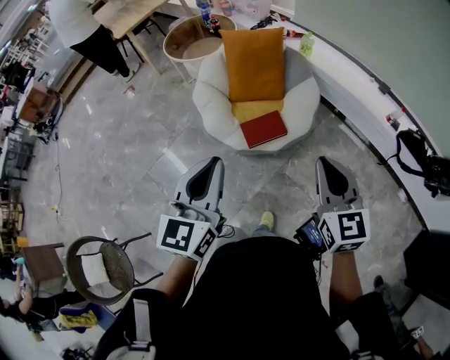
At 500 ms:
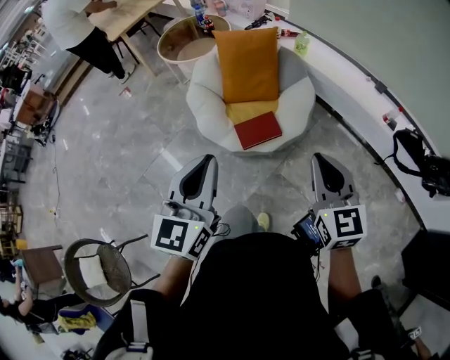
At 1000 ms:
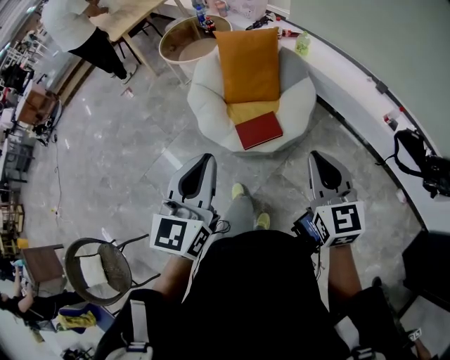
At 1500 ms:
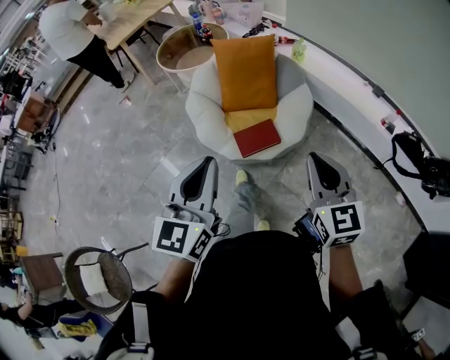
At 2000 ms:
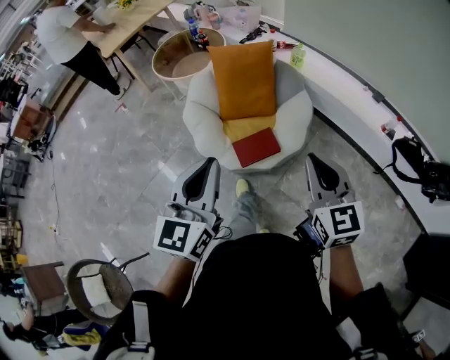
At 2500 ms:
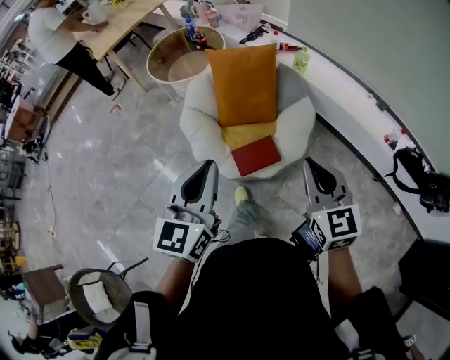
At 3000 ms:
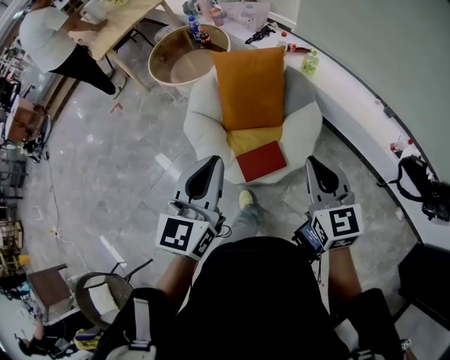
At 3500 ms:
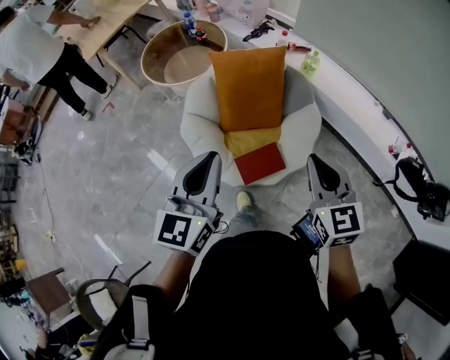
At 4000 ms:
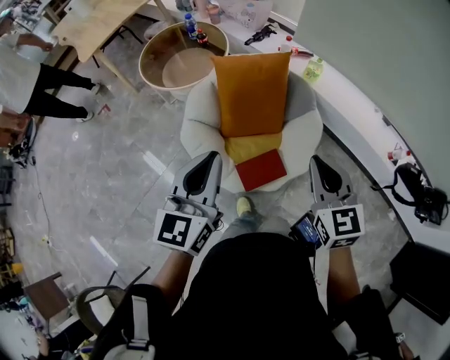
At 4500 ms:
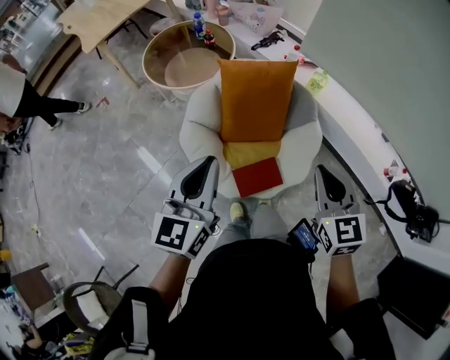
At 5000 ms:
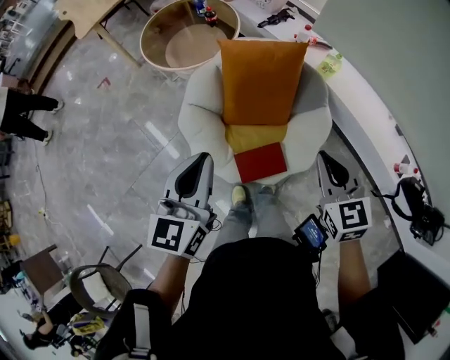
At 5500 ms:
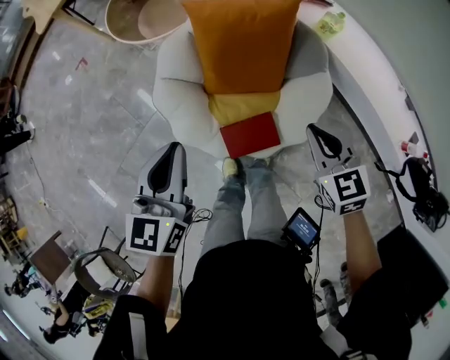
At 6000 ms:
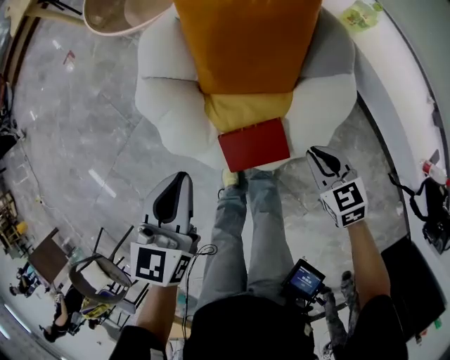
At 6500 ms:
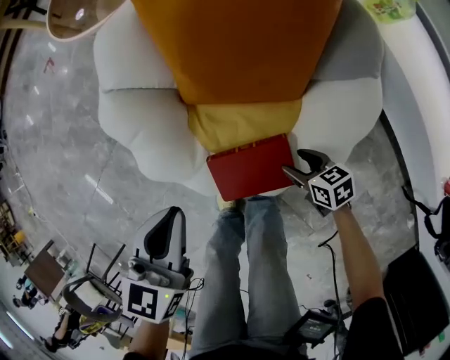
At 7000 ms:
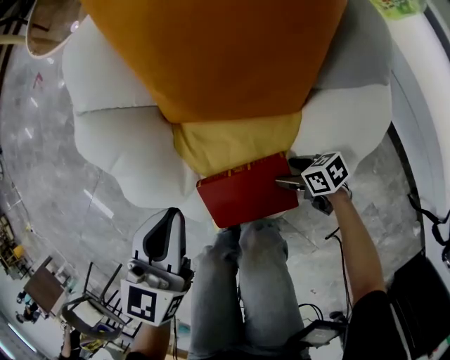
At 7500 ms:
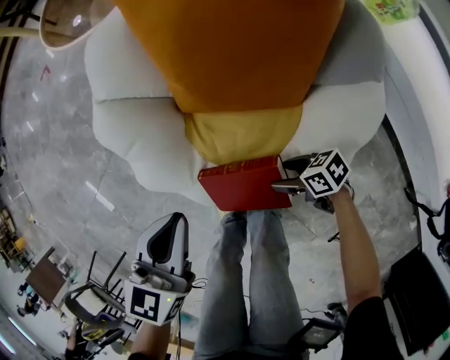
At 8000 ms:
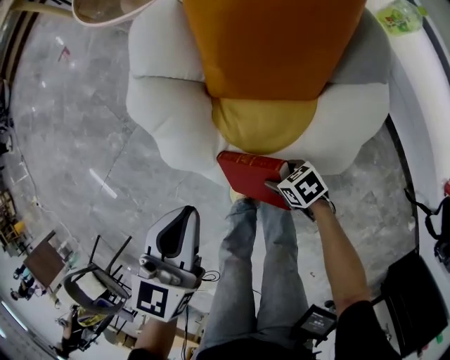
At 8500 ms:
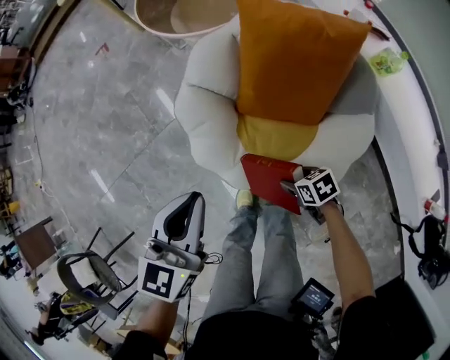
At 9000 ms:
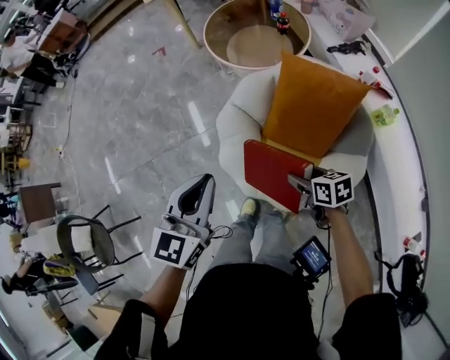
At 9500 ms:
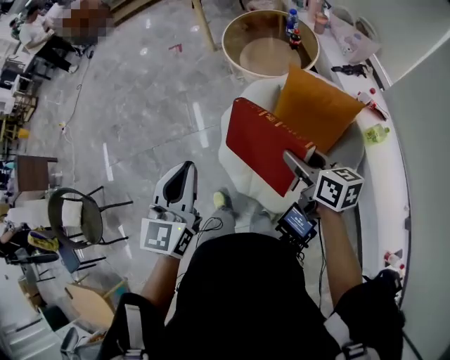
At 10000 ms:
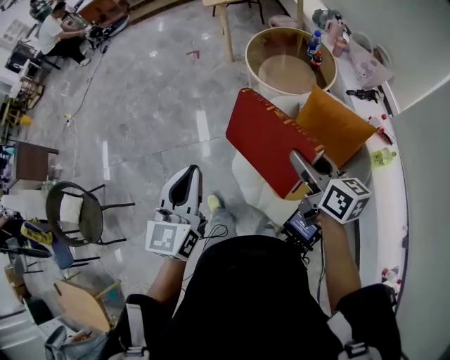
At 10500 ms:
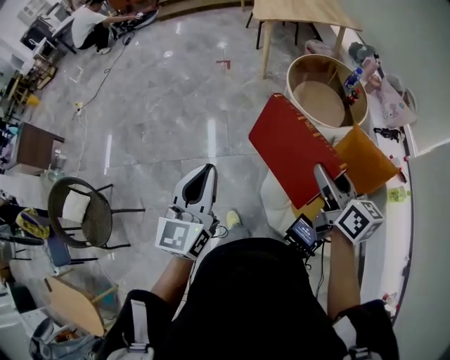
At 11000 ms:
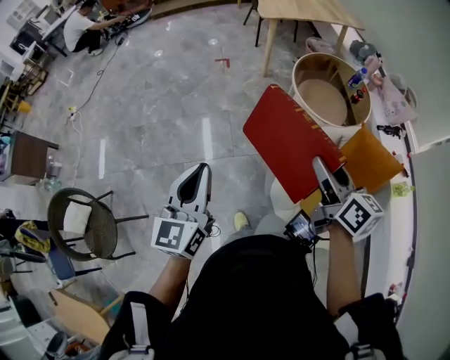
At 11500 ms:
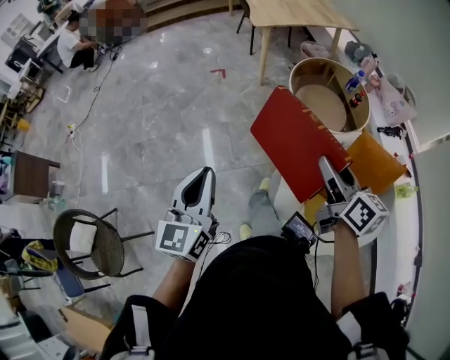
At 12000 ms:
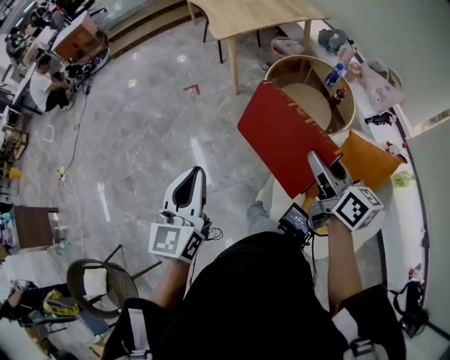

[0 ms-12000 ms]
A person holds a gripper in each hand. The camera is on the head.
0 ms to 2000 ms: Both grippers travel together forward, roughly 10 cm.
2000 ms to 4000 ms: Both grippers travel together forward, approximately 25 cm.
4000 ms to 6000 ms: Both grippers move downward, roughly 35 cm. The right gripper swivels about 40 degrees. Meanwhile the left gripper rotates roughly 30 degrees.
6000 ms to 8000 ms: The left gripper travels downward by approximately 10 cm; the right gripper is displaced downward by some 25 cm, swivels about 40 degrees, and opens up.
8000 ms to 10000 ms: The left gripper heads upward and to the left, covering some 40 cm, and swivels roughly 40 degrees. Meanwhile the right gripper is displaced upward by some 60 cm, and points its fingers about 40 degrees further upward.
10000 ms to 12000 ms: Both grippers travel together forward and to the left, about 35 cm.

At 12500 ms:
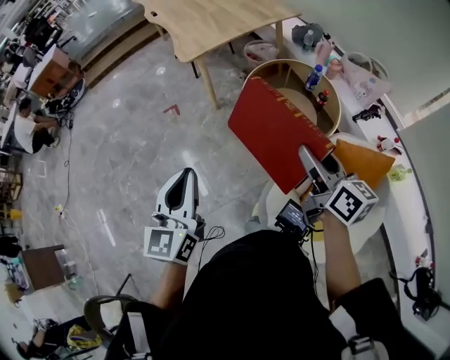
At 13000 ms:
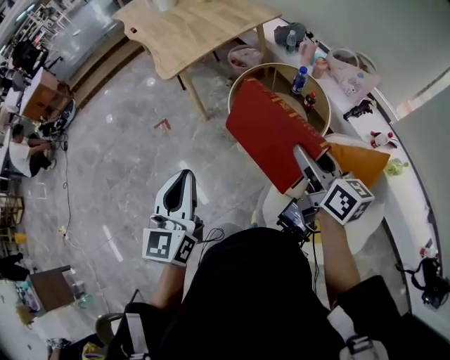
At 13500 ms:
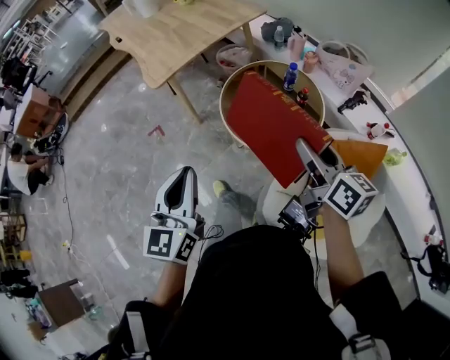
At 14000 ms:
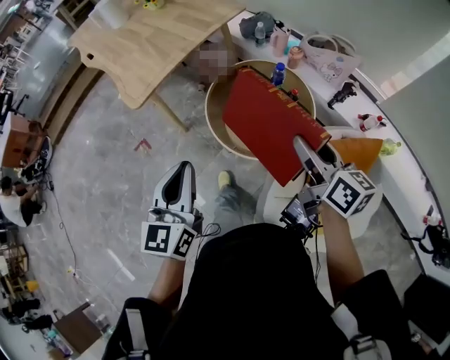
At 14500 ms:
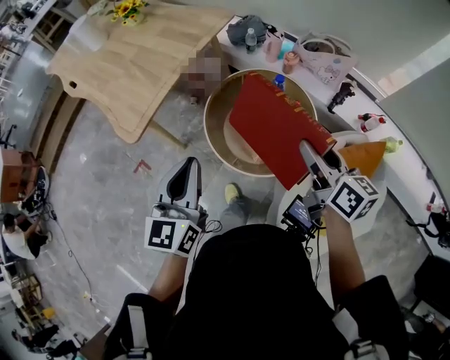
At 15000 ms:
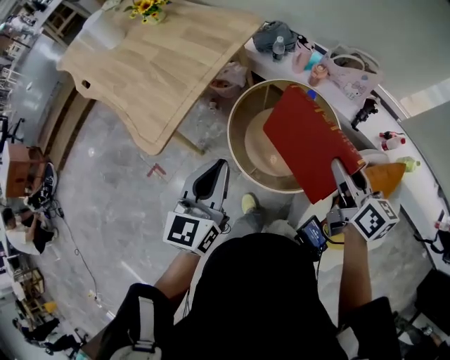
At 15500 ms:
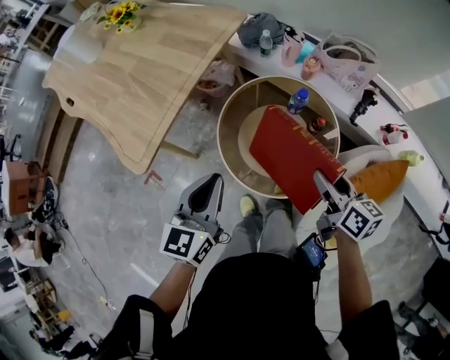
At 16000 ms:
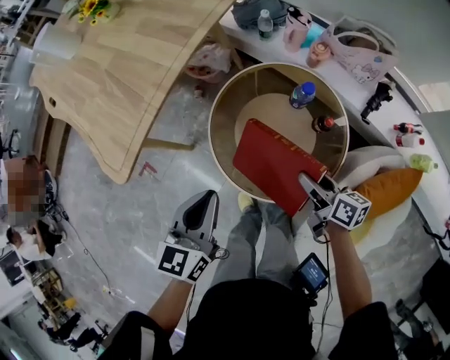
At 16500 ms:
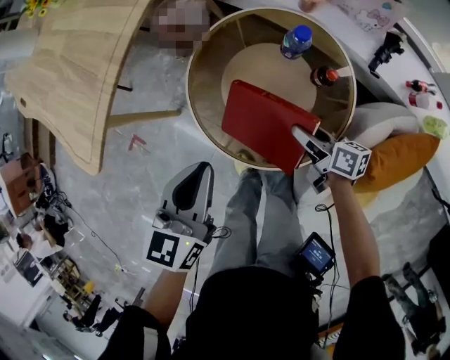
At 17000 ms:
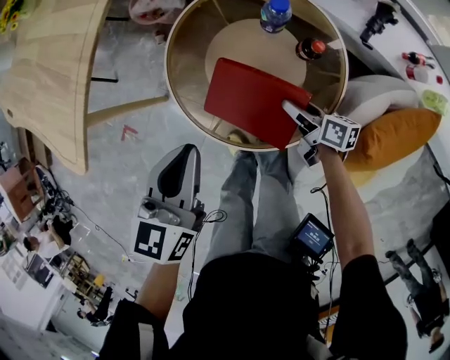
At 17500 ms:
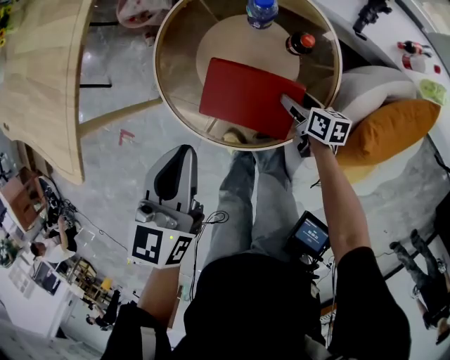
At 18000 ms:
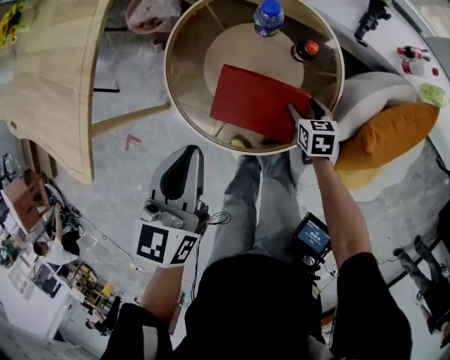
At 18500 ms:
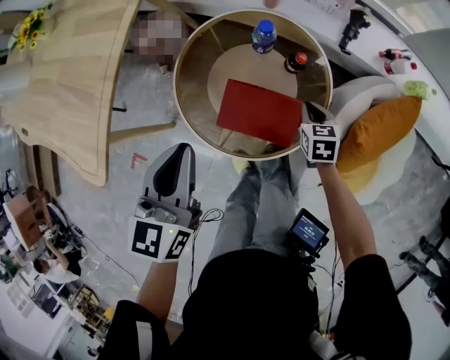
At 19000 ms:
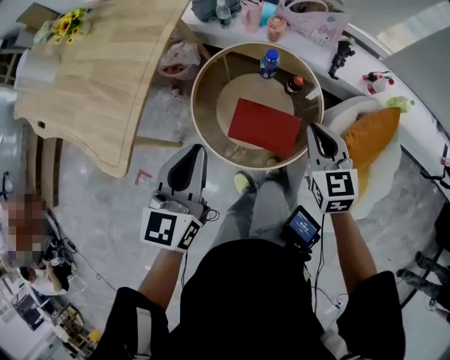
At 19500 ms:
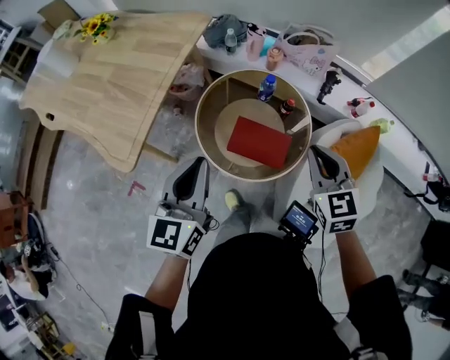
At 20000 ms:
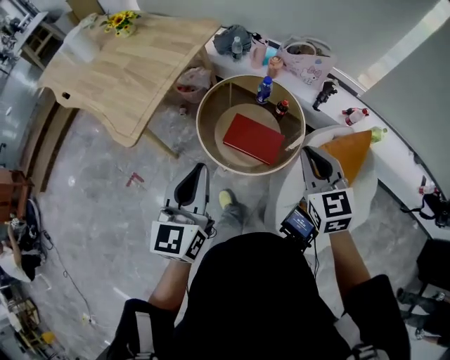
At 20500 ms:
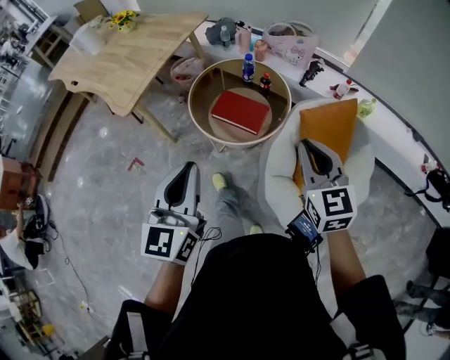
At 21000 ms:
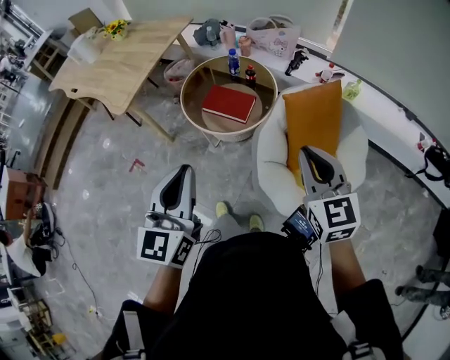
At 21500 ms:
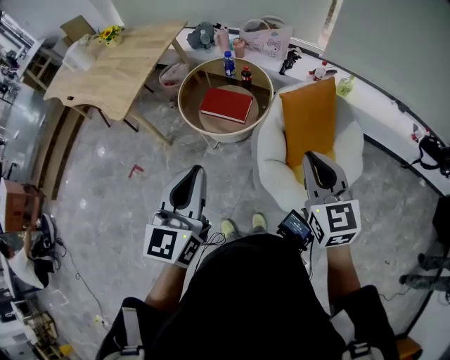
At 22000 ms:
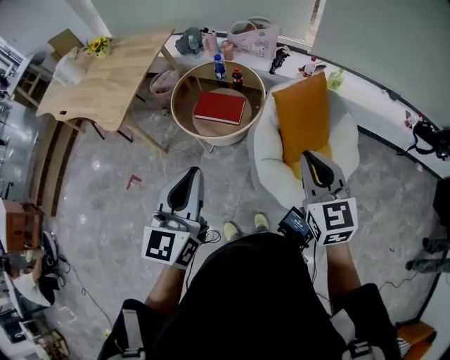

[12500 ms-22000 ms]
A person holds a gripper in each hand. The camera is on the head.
12500 ms to 14500 ms: The right gripper ends up some 25 cm from where it was, and swivels some 20 degrees. The left gripper changes place by roughly 35 cm, and rotates about 30 degrees.
14500 ms to 16500 ms: The left gripper shifts approximately 25 cm downward and forward, and swivels approximately 20 degrees; the right gripper shifts approximately 40 cm downward, and changes its angle by roughly 30 degrees.
16500 ms to 18000 ms: The right gripper travels downward and to the right by some 10 cm, and points its fingers some 30 degrees further downward.
18000 ms to 20000 ms: The left gripper moves upward and backward, roughly 30 cm, and swivels some 20 degrees. Meanwhile the right gripper goes some 50 cm upward, angles its fingers upward, by some 30 degrees, and closes up.
20000 ms to 22000 ms: The two grippers go some 30 cm backward and to the right.

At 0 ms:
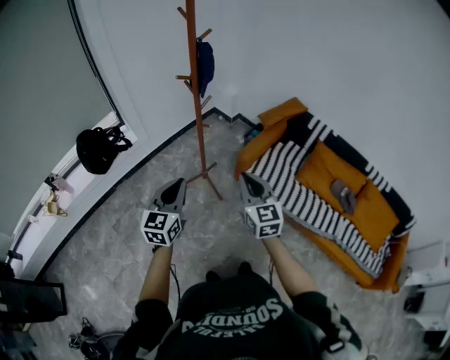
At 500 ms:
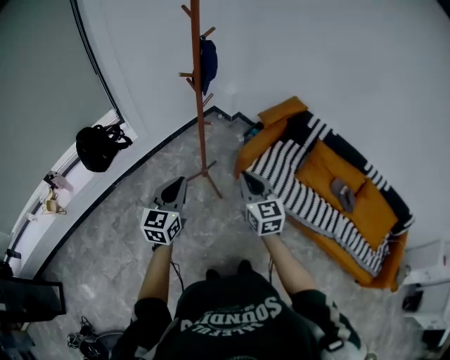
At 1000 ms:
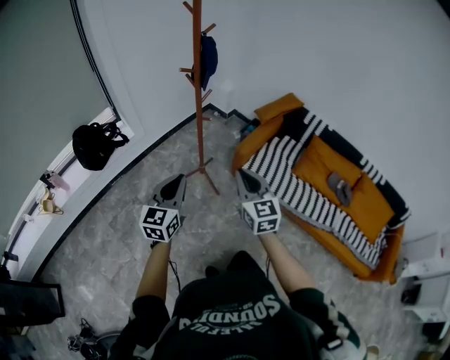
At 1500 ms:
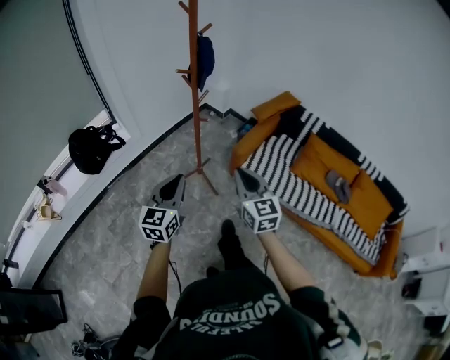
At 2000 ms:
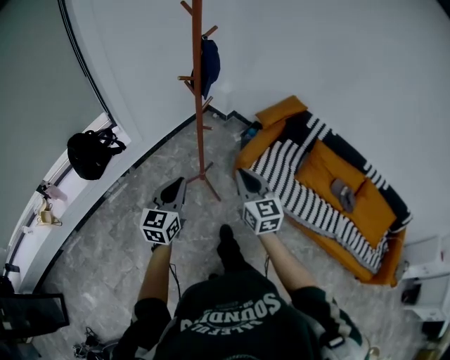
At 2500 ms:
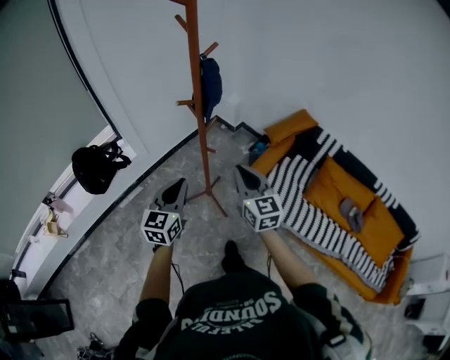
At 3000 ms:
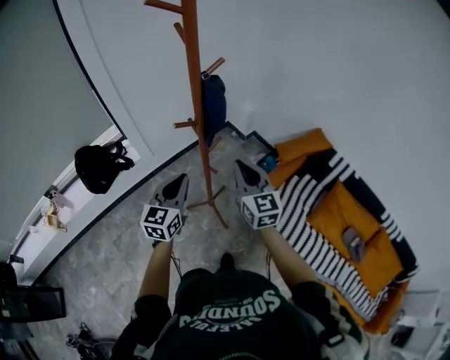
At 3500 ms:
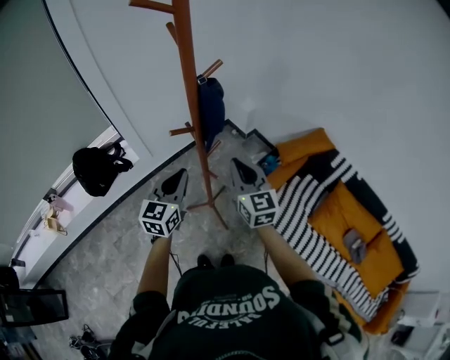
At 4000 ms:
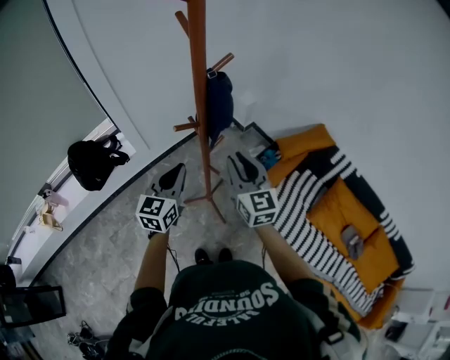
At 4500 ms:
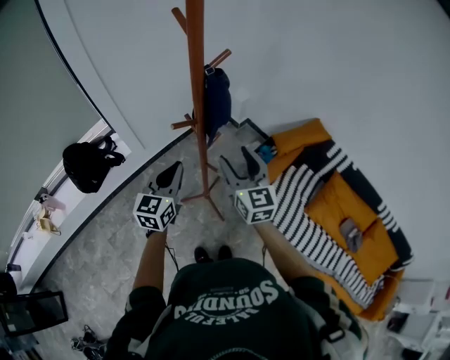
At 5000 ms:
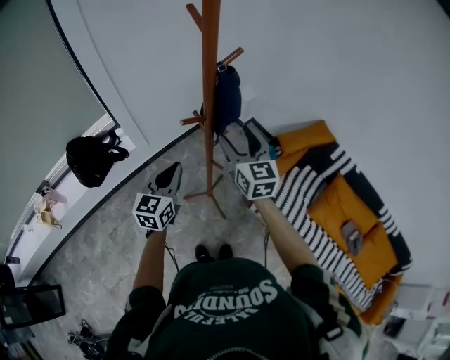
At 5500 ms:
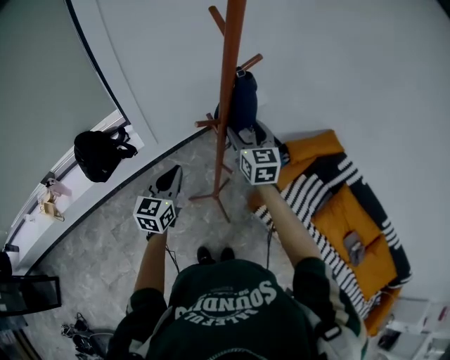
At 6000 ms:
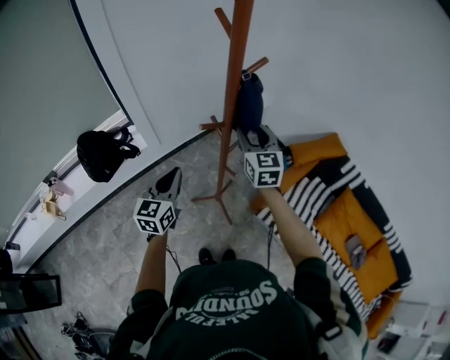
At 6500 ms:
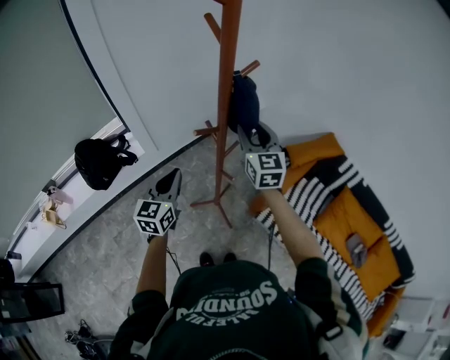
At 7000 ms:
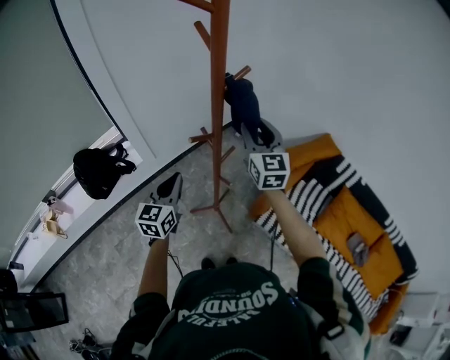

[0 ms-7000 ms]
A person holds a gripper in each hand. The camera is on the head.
0 ms to 2000 ms: The left gripper shifts roughly 5 cm forward. Meanwhile the right gripper heads to the left and forward, covering approximately 10 cm.
2000 ms to 3500 ms: The grippers both shift forward by approximately 30 cm.
3500 ms to 5000 ms: The left gripper goes approximately 5 cm to the left, while the right gripper is displaced forward by approximately 5 cm, and opens.
5000 ms to 7000 ms: The right gripper shifts roughly 5 cm forward, and closes up.
